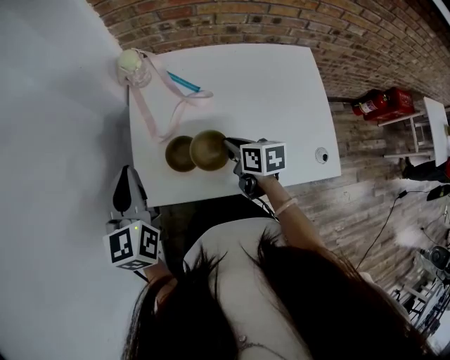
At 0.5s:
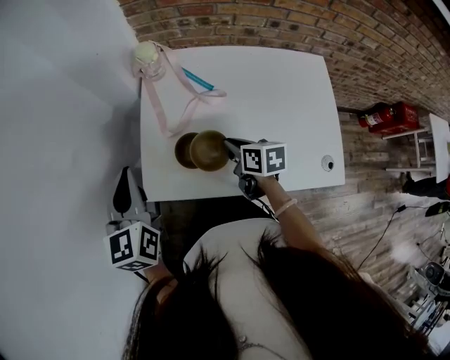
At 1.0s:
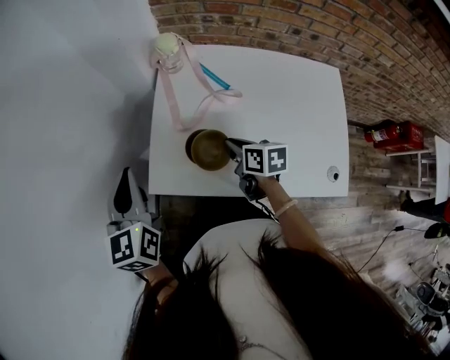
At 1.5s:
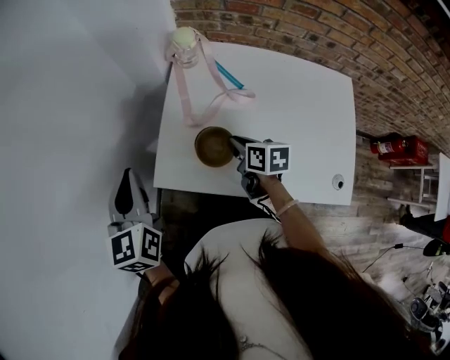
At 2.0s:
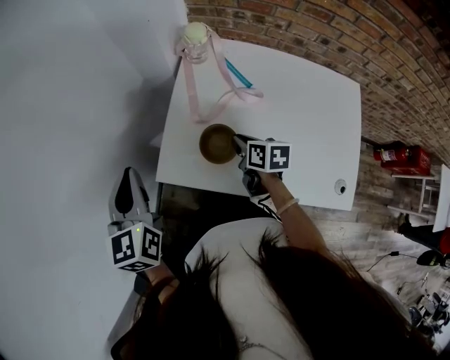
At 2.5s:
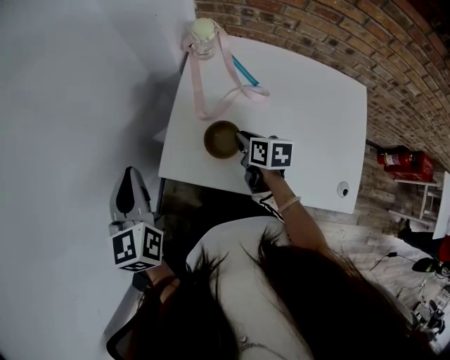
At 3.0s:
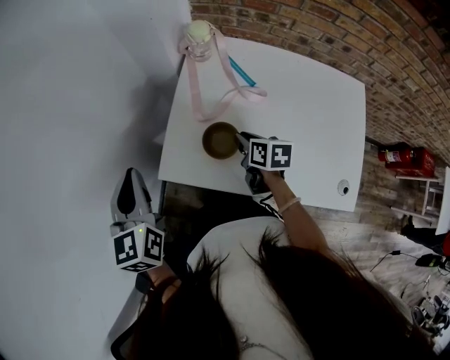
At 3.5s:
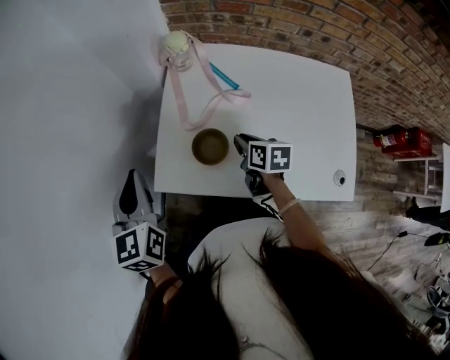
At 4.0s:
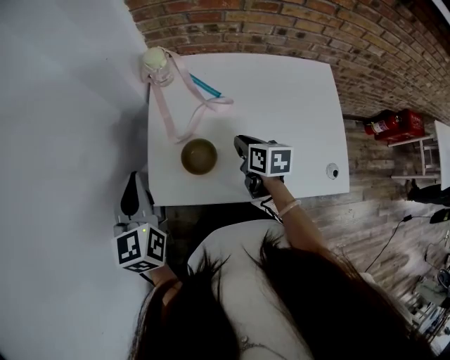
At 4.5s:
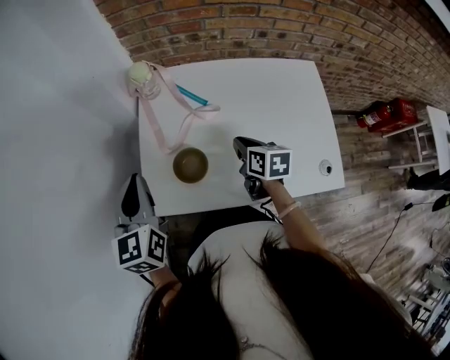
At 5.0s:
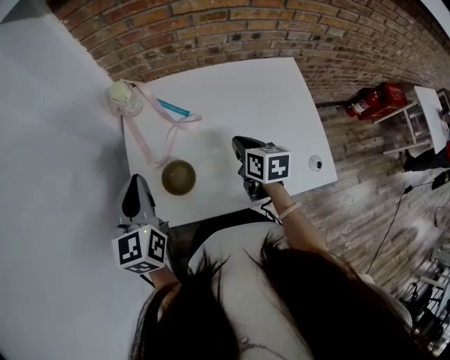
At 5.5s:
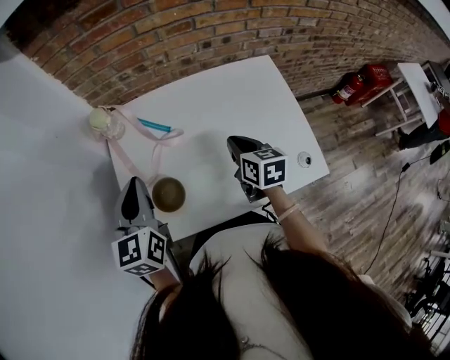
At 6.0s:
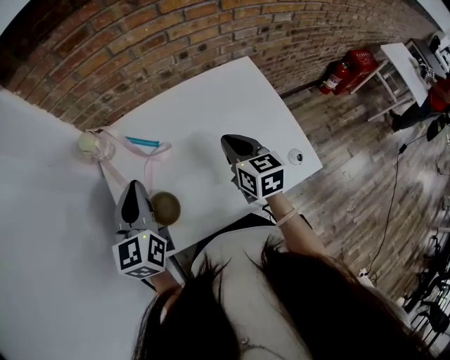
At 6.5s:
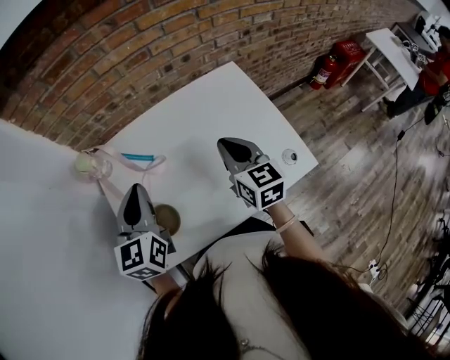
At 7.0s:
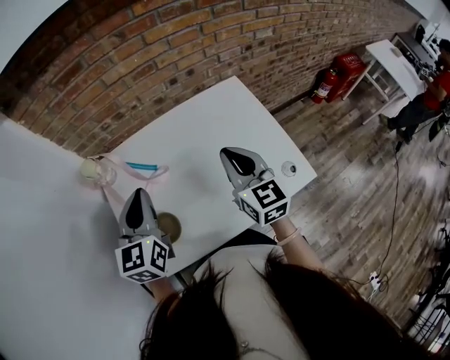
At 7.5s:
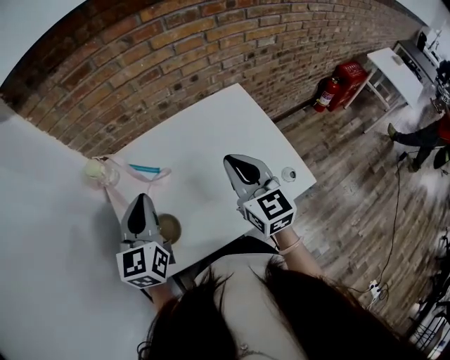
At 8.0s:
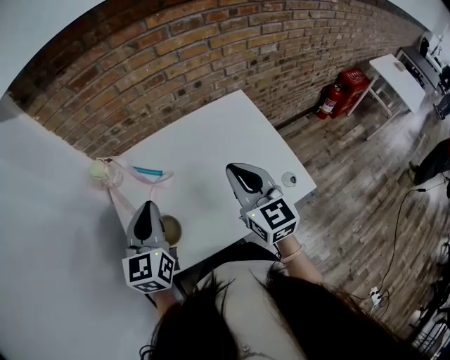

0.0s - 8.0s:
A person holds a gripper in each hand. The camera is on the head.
0.0s - 2.0s: The left gripper is displaced to the left by some 10 cm, while the right gripper goes roughly 5 cm to the left.
2.0s - 4.0s: Both grippers travel together to the right, approximately 10 cm.
4.0s - 6.0s: The right gripper moves about 20 cm, and changes its angle by some 30 degrees, while the left gripper ends up about 20 cm from where it was, and rotates some 20 degrees.
6.0s - 8.0s: The left gripper shifts by about 5 cm. Meanwhile the right gripper heads upward and backward, covering approximately 15 cm, and turns by about 20 degrees.

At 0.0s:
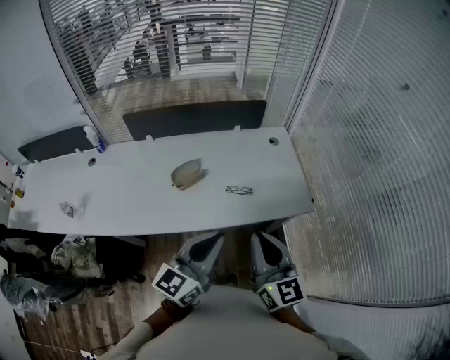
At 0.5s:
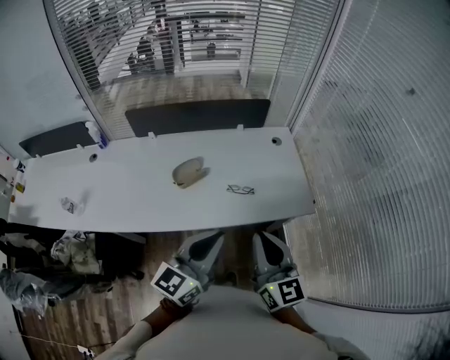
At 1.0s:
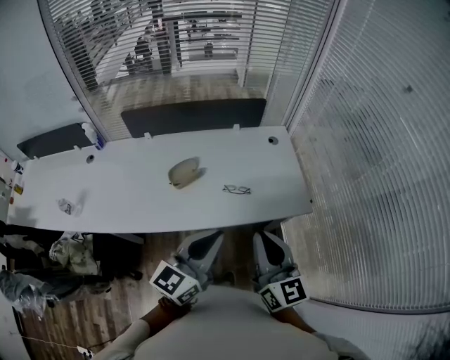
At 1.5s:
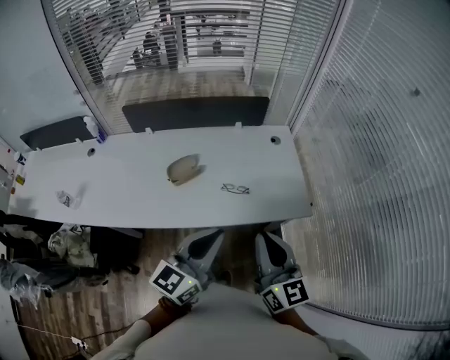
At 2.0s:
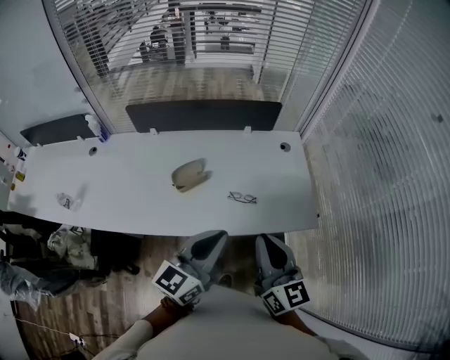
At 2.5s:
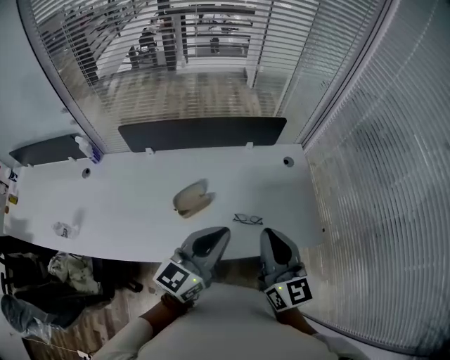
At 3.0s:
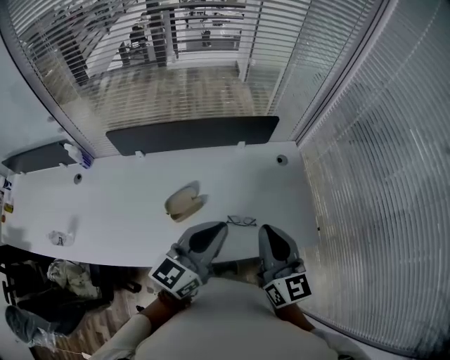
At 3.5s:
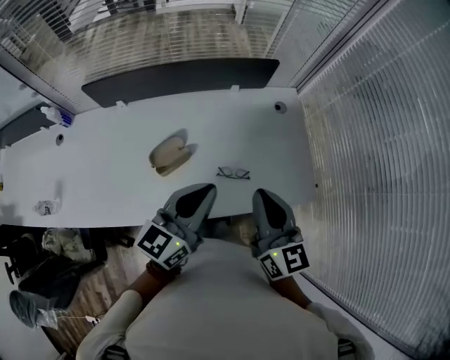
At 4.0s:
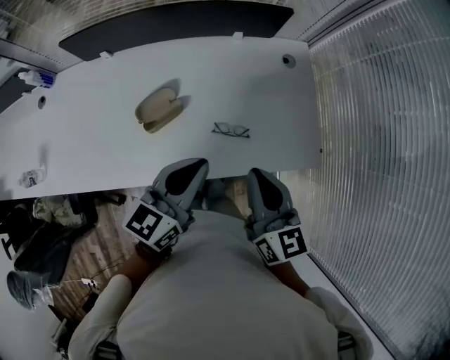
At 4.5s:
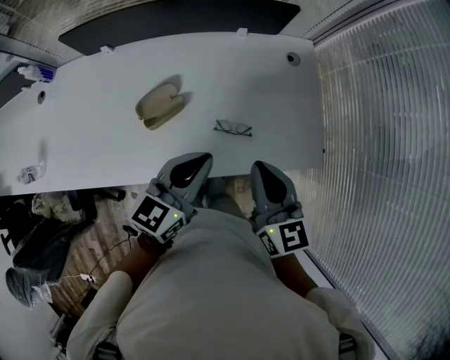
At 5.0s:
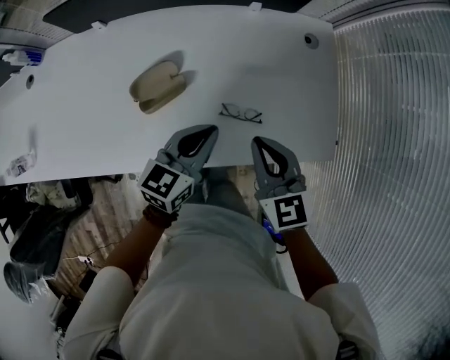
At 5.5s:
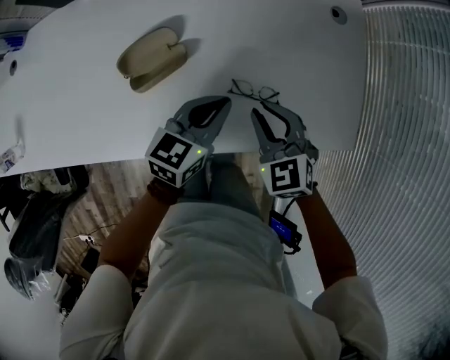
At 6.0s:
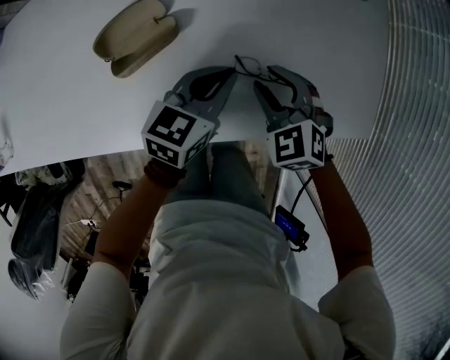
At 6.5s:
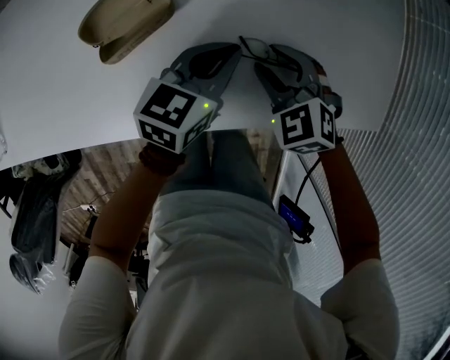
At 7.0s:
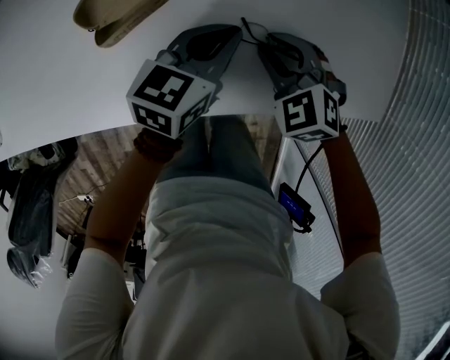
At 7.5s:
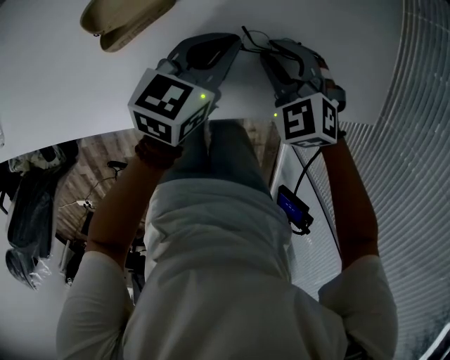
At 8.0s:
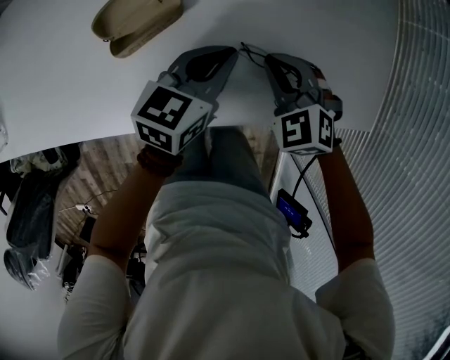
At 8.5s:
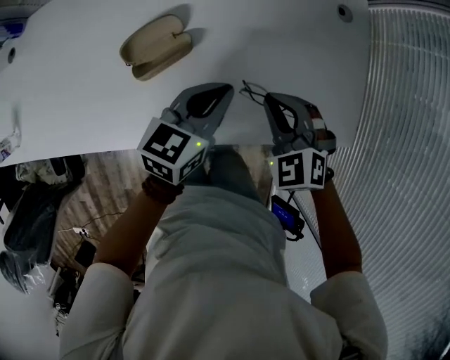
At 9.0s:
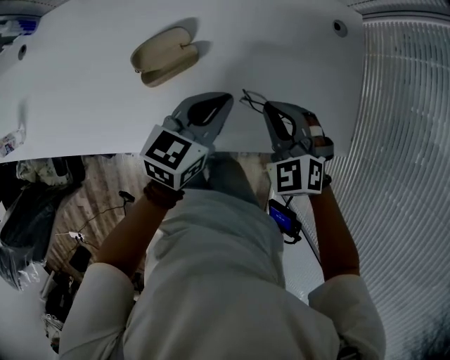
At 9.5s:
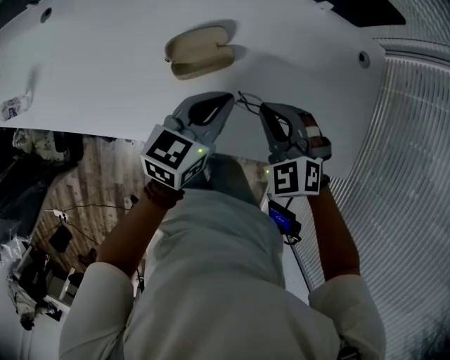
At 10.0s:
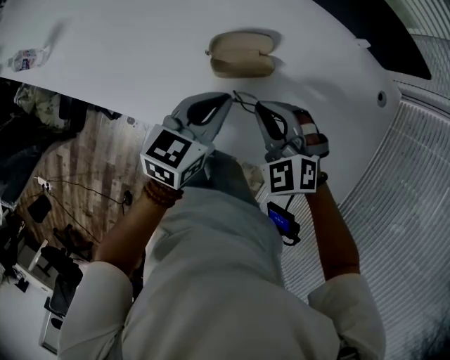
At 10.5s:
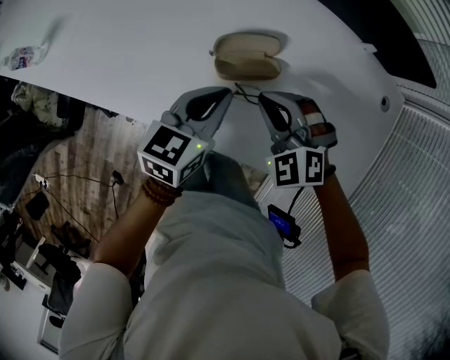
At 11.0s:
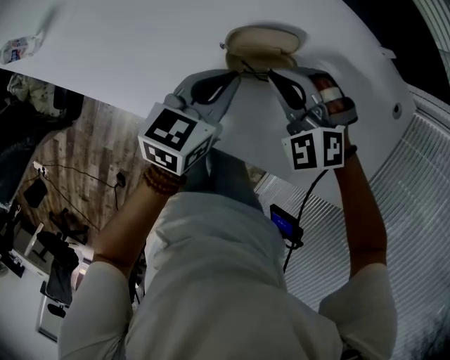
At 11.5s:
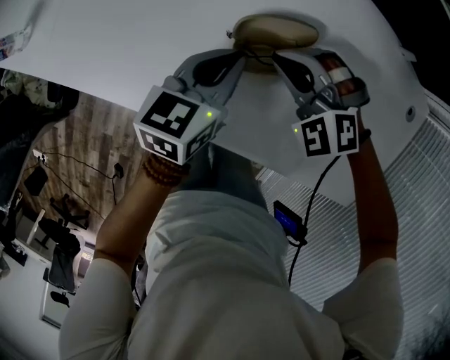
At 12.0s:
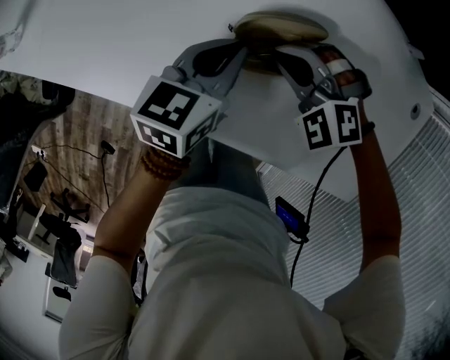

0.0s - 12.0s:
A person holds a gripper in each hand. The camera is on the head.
0.0s - 2.0s: Both grippers move forward, roughly 10 cm.
2.0s - 4.0s: The grippers both shift forward and downward by some 15 cm.
4.0s - 6.0s: The grippers both shift downward by approximately 30 cm. The right gripper points its fingers approximately 30 degrees further downward, and opens up.
6.0s - 8.0s: The right gripper closes up.
8.0s - 10.0s: The grippers both shift to the left and upward by approximately 20 cm. The left gripper changes its angle by approximately 20 degrees. The right gripper swivels approximately 30 degrees.
10.0s - 12.0s: Both grippers move downward and forward, some 10 cm. The right gripper rotates about 30 degrees.

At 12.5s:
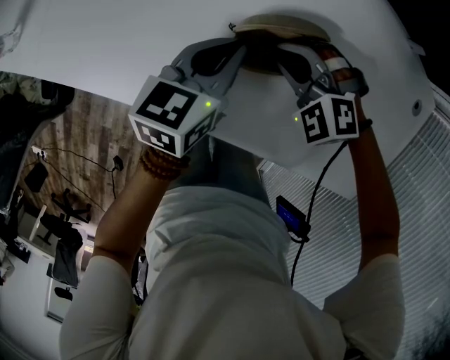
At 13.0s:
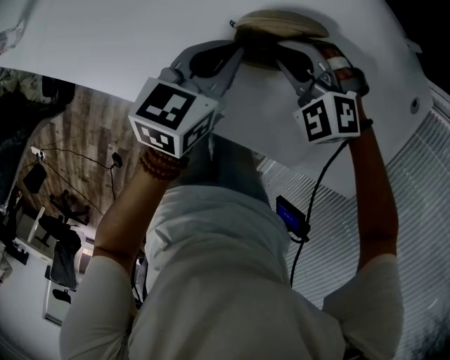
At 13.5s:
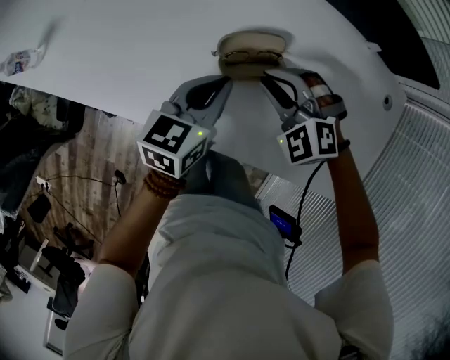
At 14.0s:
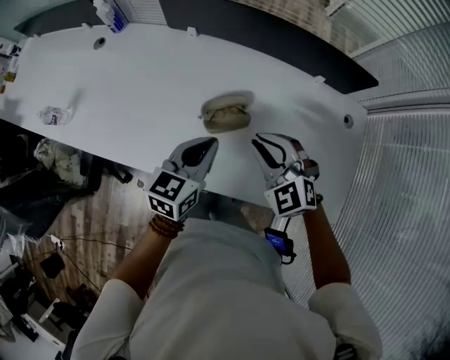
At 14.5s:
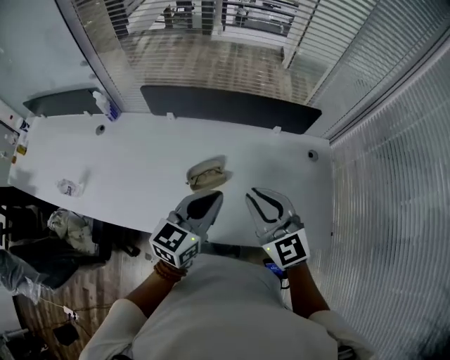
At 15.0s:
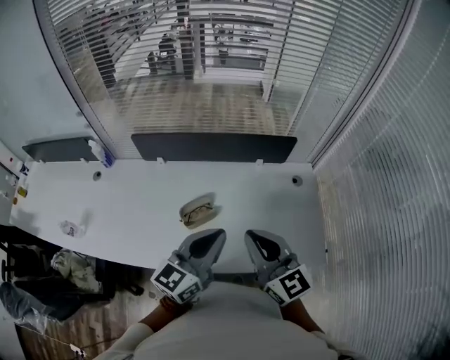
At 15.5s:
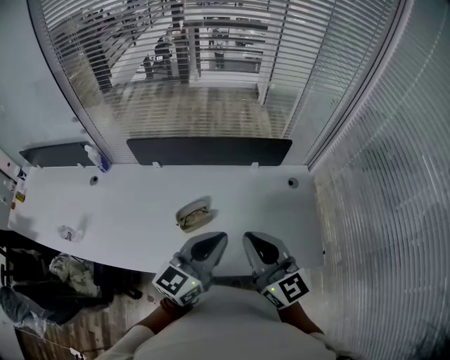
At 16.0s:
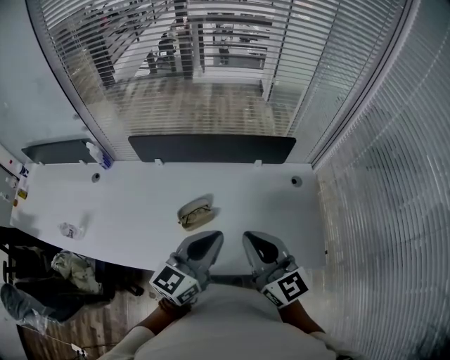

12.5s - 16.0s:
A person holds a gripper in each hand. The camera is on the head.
12.5s - 14.5s: Both grippers move upward, roughly 35 cm. The right gripper tips its fingers upward by approximately 40 degrees; the left gripper swivels roughly 30 degrees.
14.5s - 16.0s: The left gripper travels upward by approximately 5 cm; the right gripper travels upward and to the right by roughly 10 cm, and changes its angle by some 30 degrees.

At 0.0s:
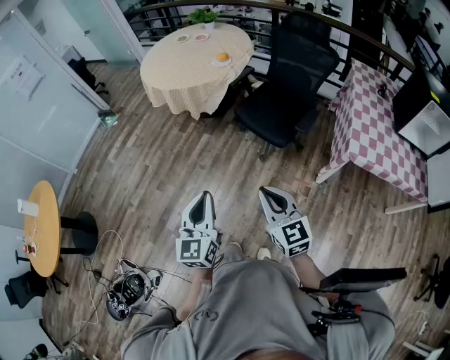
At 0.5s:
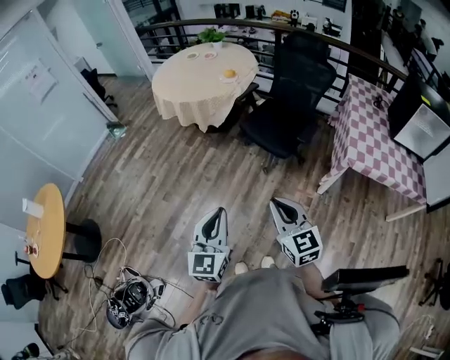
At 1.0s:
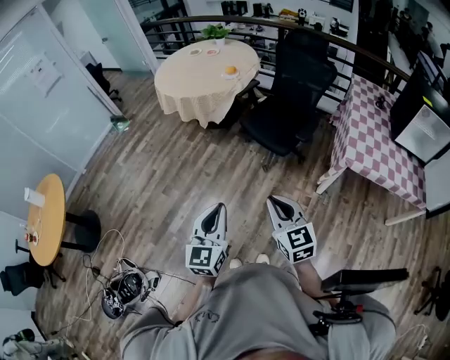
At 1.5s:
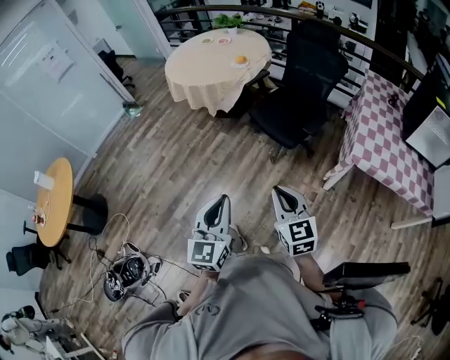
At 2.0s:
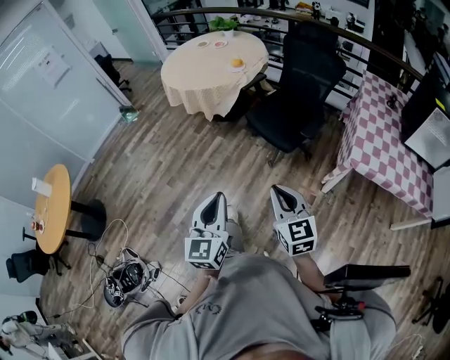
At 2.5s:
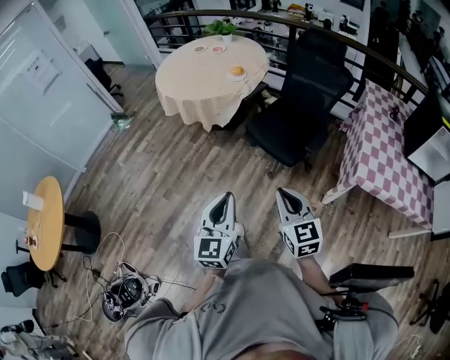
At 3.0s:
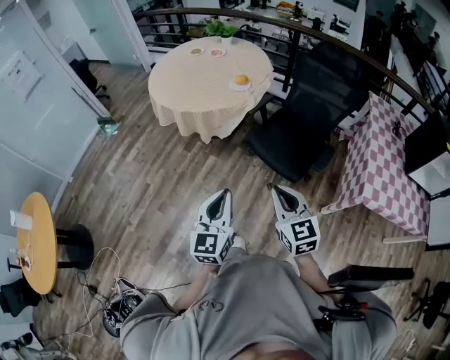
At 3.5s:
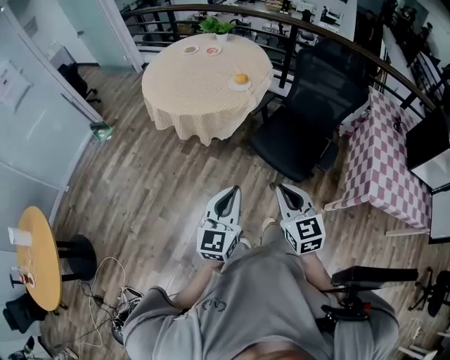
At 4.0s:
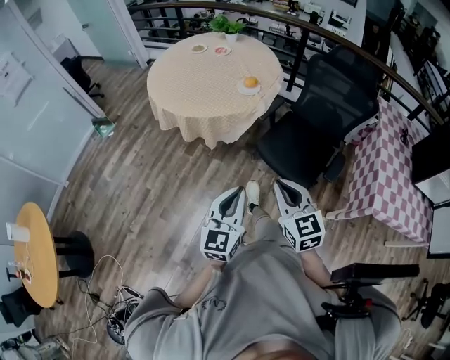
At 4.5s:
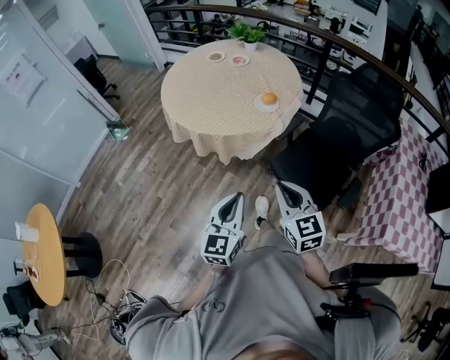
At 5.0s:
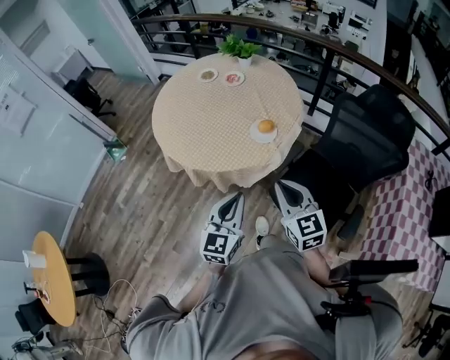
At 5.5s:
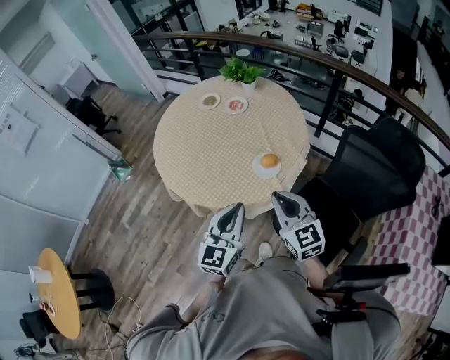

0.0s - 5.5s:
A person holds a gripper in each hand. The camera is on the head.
0.0s - 2.0s: The right gripper moves to the right and backward, about 10 cm; the left gripper heads backward and to the right, covering some 15 cm.
2.0s - 3.5s: Both grippers travel together forward and to the left, roughly 40 cm.
3.5s - 5.5s: The two grippers travel together, forward, roughly 50 cm.
